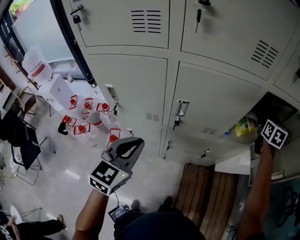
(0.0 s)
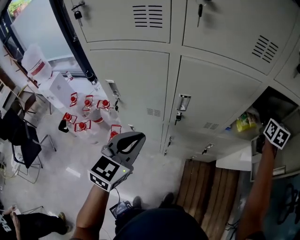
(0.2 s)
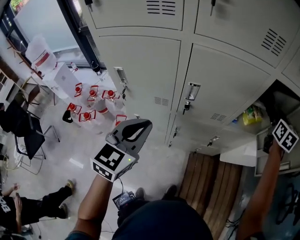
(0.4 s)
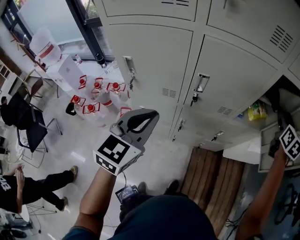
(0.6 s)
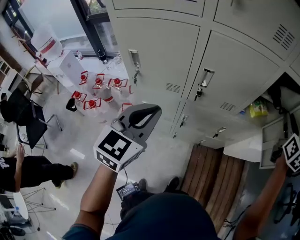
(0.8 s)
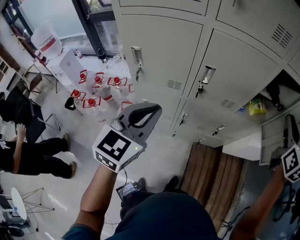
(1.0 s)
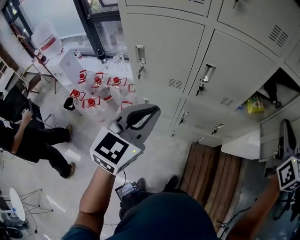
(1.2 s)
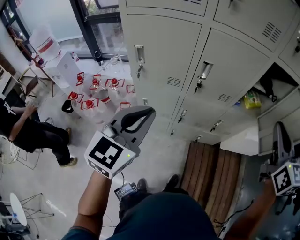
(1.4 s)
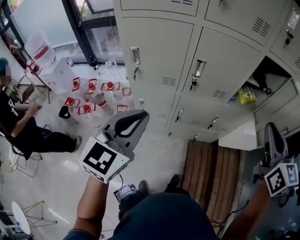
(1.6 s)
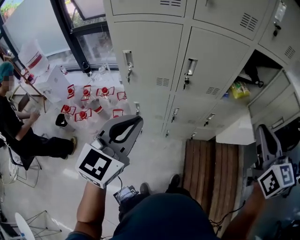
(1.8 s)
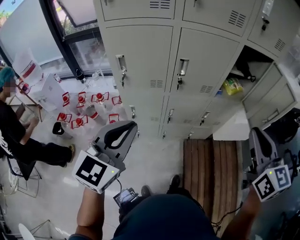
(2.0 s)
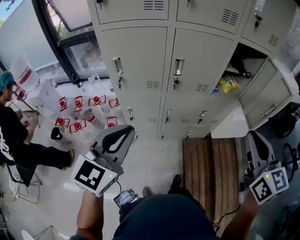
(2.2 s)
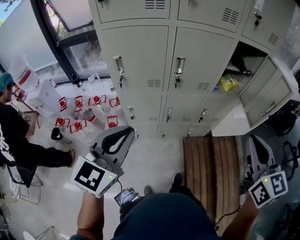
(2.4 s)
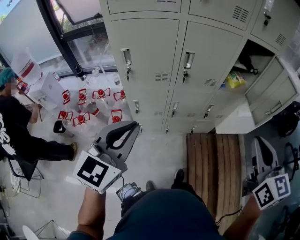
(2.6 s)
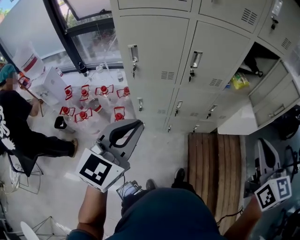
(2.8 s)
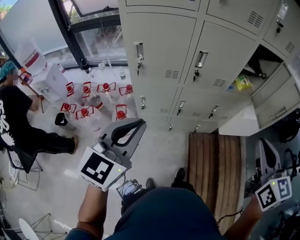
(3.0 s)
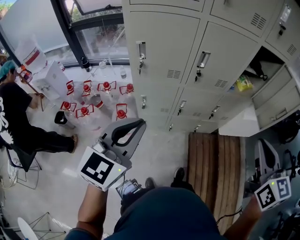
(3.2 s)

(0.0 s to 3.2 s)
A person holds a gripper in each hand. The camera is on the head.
0.0 s - 1.6 s: The right gripper heads backward, covering some 40 cm, swivels approximately 20 degrees, and closes. The left gripper shifts about 15 cm backward.
1.6 s - 3.2 s: The right gripper heads backward and to the left, covering roughly 15 cm. The left gripper moves backward and to the left, roughly 10 cm.

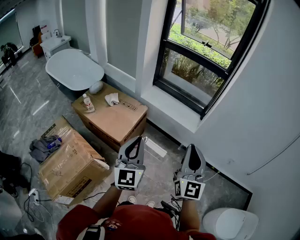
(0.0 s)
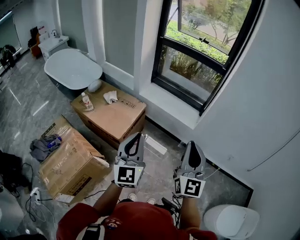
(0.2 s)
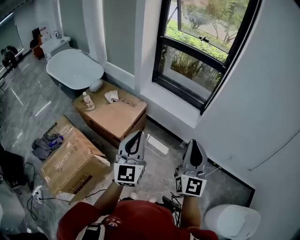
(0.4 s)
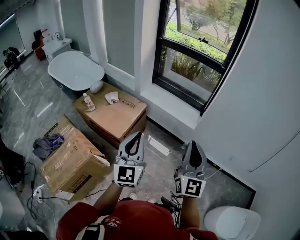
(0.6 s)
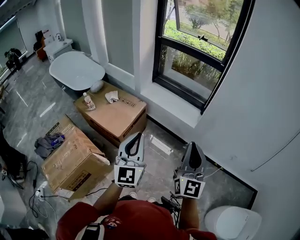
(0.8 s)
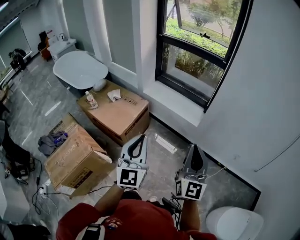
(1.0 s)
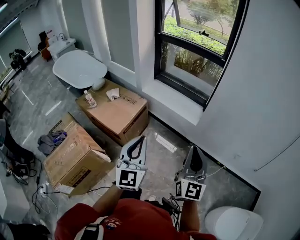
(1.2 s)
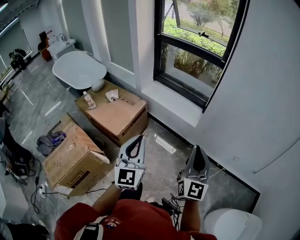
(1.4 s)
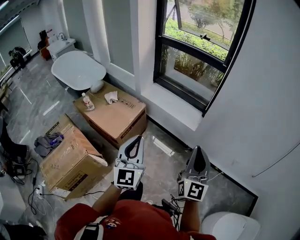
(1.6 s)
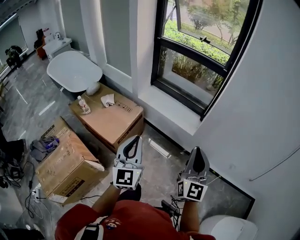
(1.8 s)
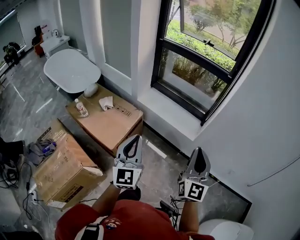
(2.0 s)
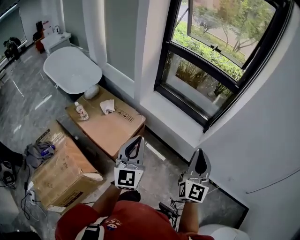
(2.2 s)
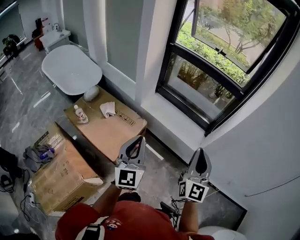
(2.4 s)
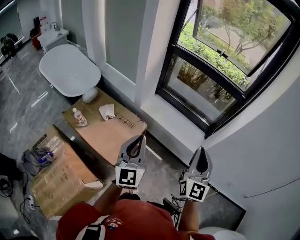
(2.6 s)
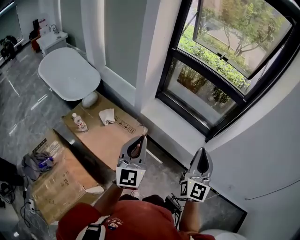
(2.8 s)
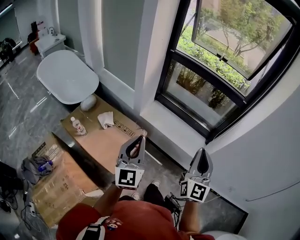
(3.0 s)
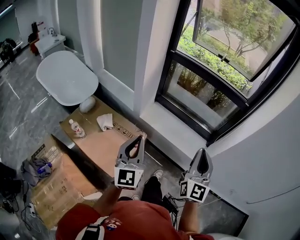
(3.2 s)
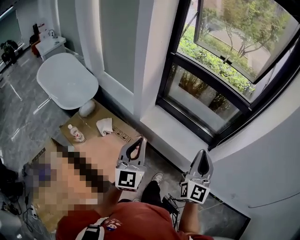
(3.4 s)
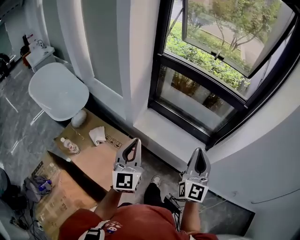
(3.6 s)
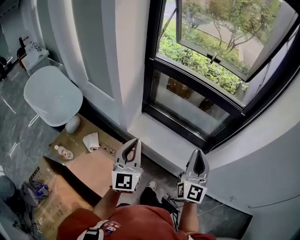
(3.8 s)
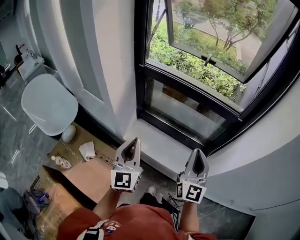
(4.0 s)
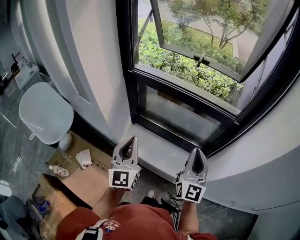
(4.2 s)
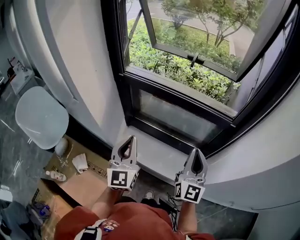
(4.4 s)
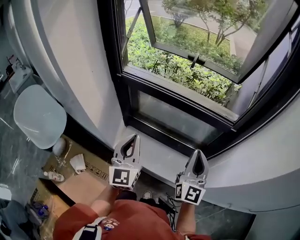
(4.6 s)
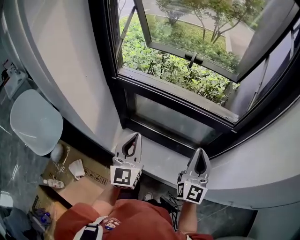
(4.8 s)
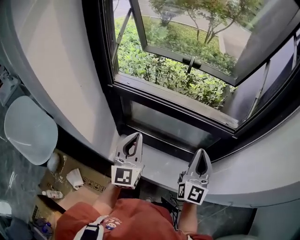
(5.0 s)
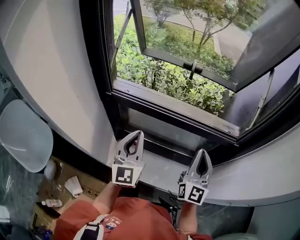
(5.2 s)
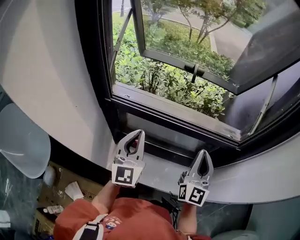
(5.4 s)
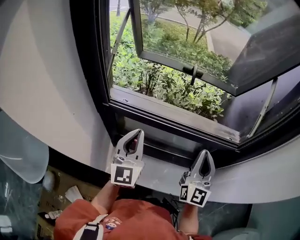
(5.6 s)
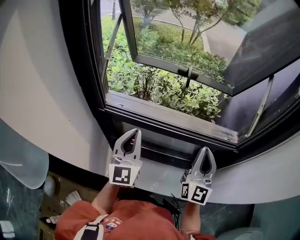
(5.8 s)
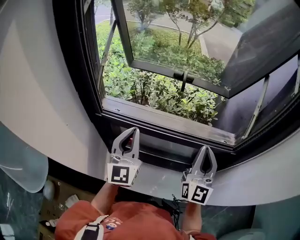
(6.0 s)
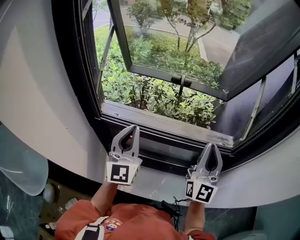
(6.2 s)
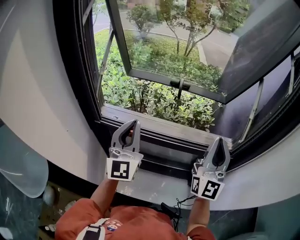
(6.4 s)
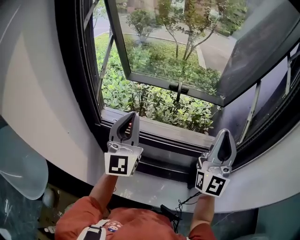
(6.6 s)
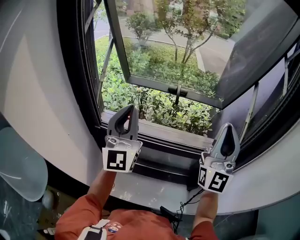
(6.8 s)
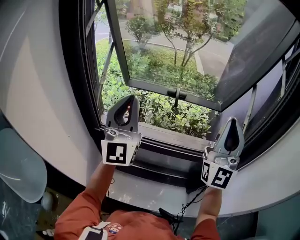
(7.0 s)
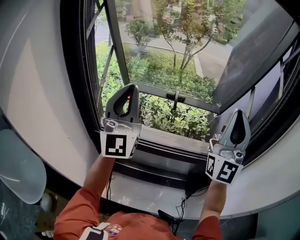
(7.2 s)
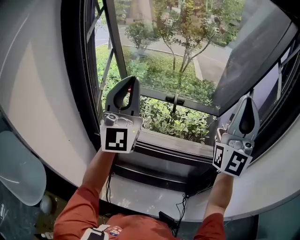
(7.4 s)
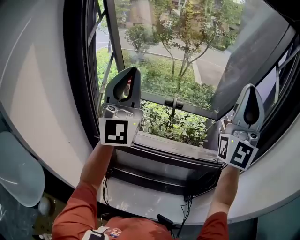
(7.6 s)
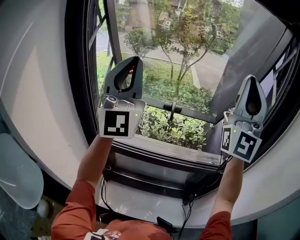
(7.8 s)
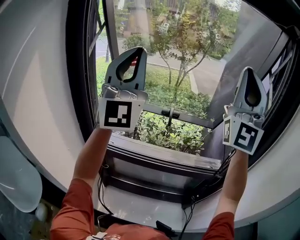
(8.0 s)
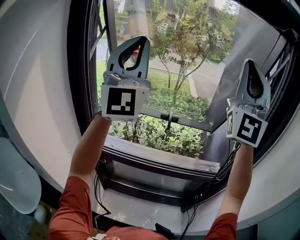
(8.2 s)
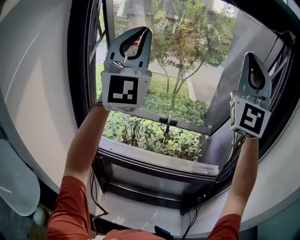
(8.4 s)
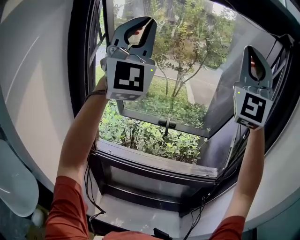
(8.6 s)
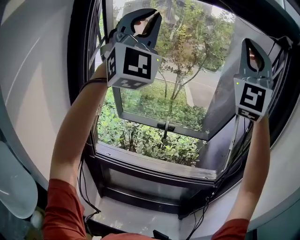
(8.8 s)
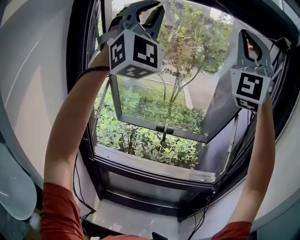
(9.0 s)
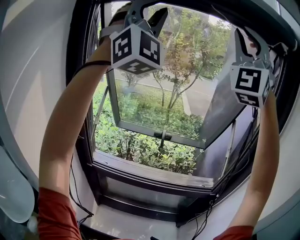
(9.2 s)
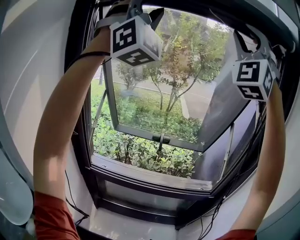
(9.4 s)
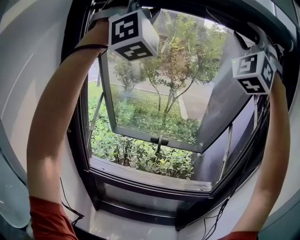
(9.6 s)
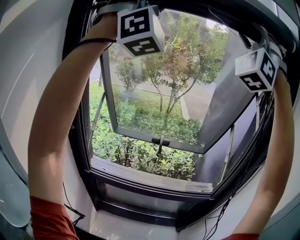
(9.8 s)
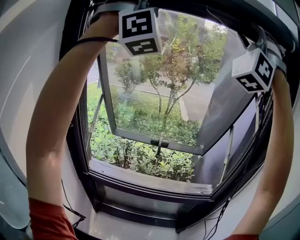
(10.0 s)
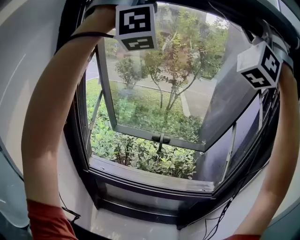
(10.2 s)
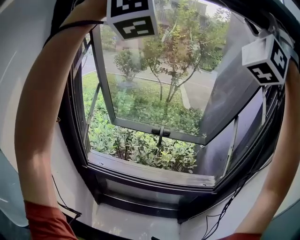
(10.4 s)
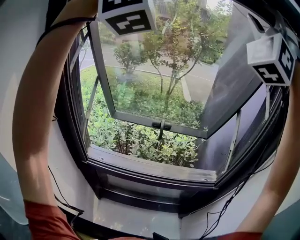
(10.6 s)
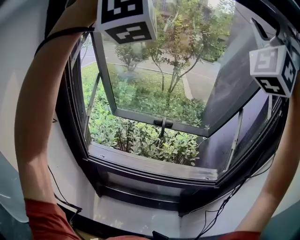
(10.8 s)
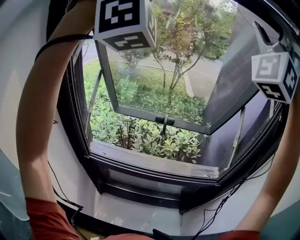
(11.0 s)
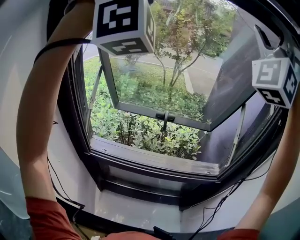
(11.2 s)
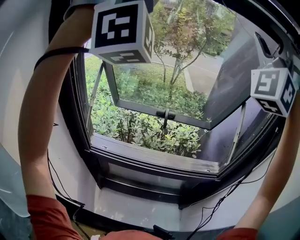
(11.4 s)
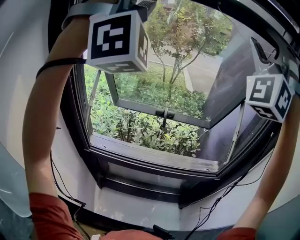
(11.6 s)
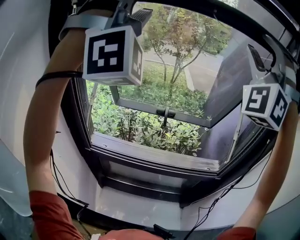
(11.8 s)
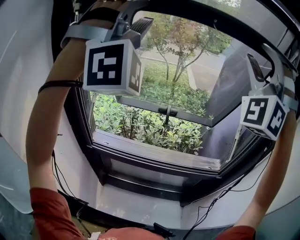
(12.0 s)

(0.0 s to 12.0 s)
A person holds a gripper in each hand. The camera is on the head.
0.0 s - 1.6 s: The grippers both shift to the right by approximately 10 cm.
1.6 s - 3.0 s: Both grippers move forward and to the left, approximately 30 cm.
3.0 s - 4.4 s: The left gripper is displaced forward by about 35 cm, while the right gripper is displaced forward and to the right by some 35 cm.
4.4 s - 6.0 s: The right gripper shifts about 20 cm forward and upward. Meanwhile the left gripper goes about 25 cm forward.
6.0 s - 7.6 s: The two grippers go roughly 30 cm upward. The right gripper tilts its fingers some 30 degrees upward, while the left gripper angles its fingers upward, by approximately 30 degrees.
7.6 s - 9.0 s: Both grippers travel together upward, some 25 cm. The right gripper rotates roughly 40 degrees. The left gripper rolls clockwise, seen from behind, by some 40 degrees.
9.0 s - 10.4 s: Both grippers travel together upward, about 5 cm. The right gripper changes its angle by approximately 40 degrees, and opens its fingers. The left gripper turns by some 40 degrees, and opens up.
10.4 s - 12.0 s: Both grippers travel together downward, roughly 15 cm.

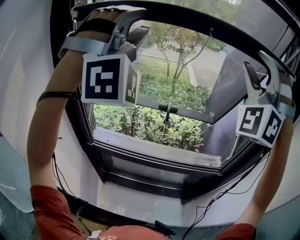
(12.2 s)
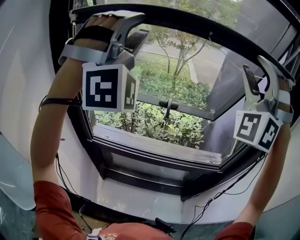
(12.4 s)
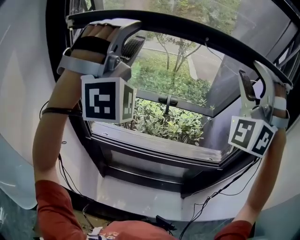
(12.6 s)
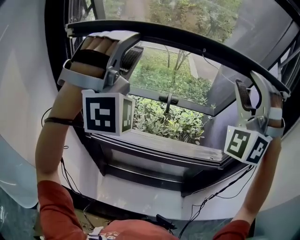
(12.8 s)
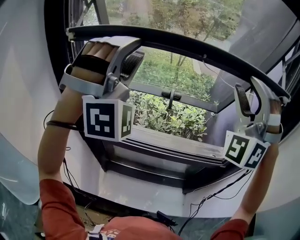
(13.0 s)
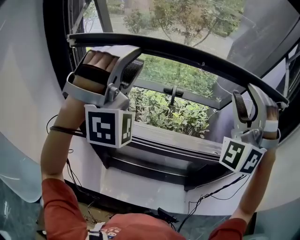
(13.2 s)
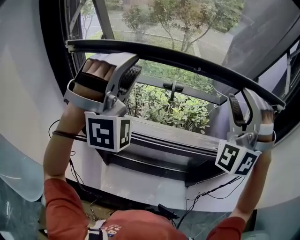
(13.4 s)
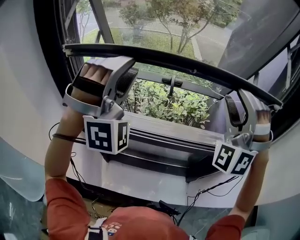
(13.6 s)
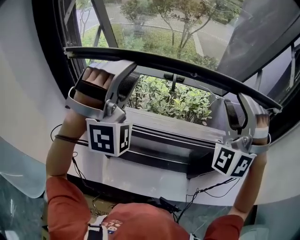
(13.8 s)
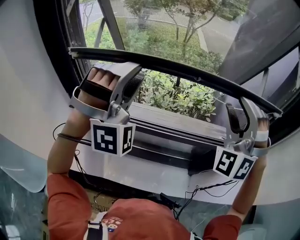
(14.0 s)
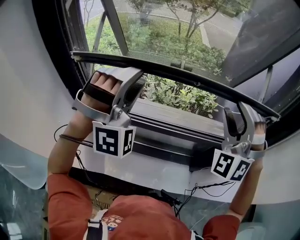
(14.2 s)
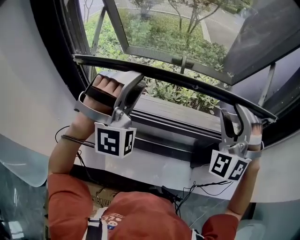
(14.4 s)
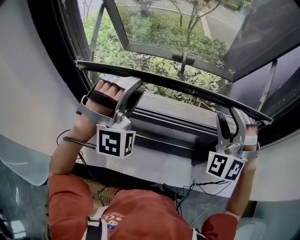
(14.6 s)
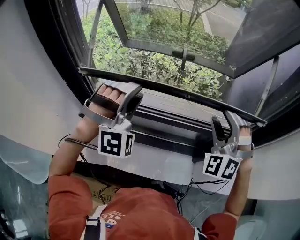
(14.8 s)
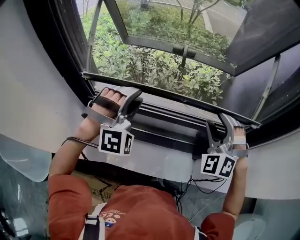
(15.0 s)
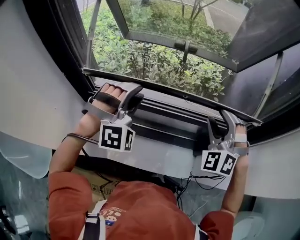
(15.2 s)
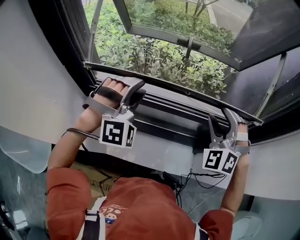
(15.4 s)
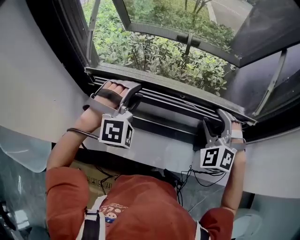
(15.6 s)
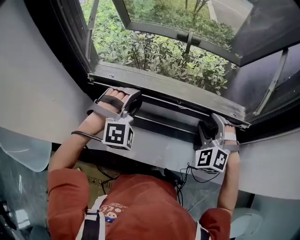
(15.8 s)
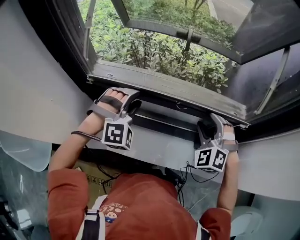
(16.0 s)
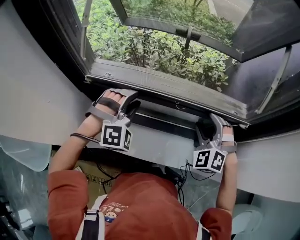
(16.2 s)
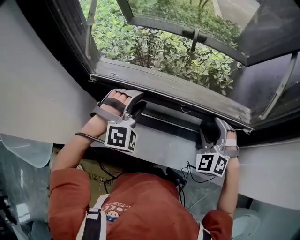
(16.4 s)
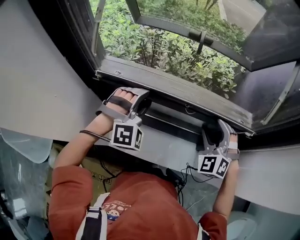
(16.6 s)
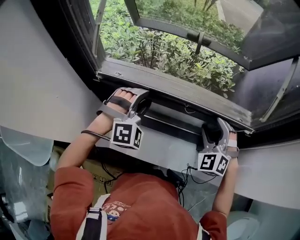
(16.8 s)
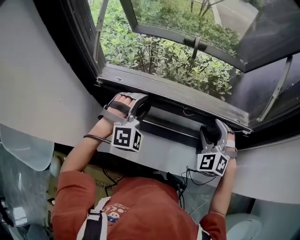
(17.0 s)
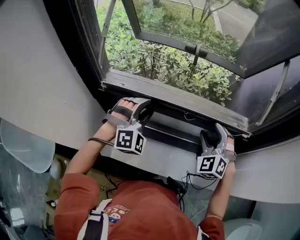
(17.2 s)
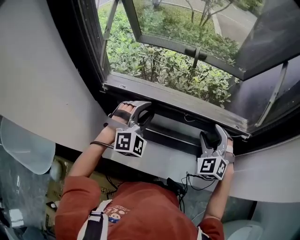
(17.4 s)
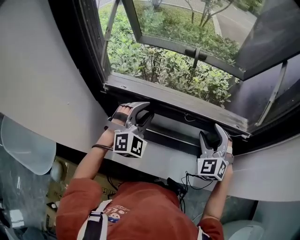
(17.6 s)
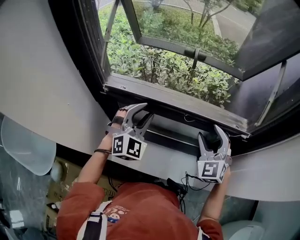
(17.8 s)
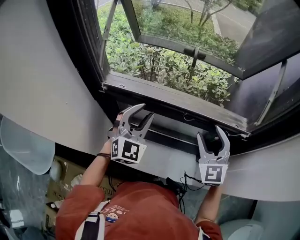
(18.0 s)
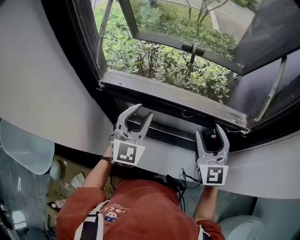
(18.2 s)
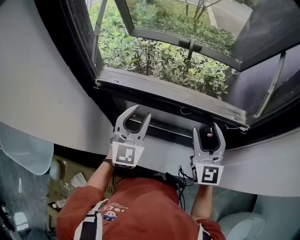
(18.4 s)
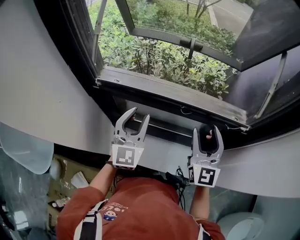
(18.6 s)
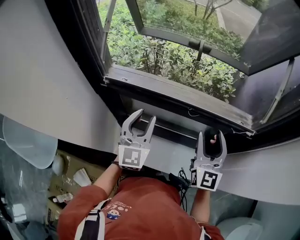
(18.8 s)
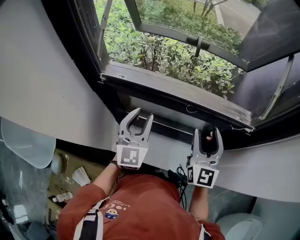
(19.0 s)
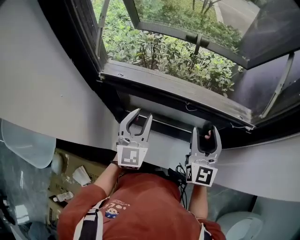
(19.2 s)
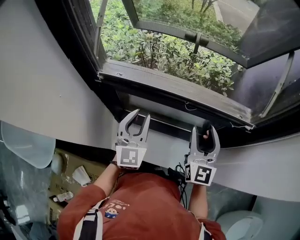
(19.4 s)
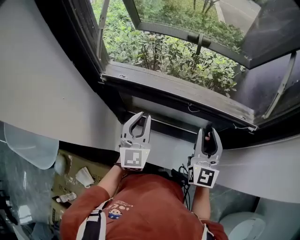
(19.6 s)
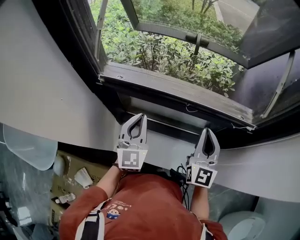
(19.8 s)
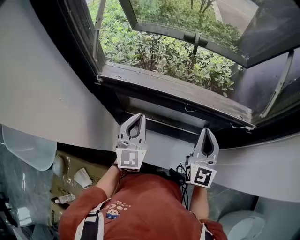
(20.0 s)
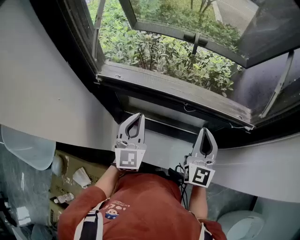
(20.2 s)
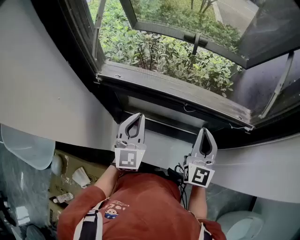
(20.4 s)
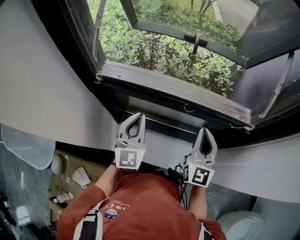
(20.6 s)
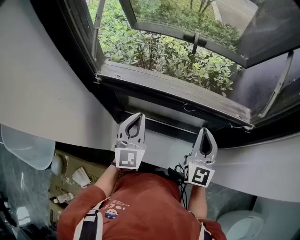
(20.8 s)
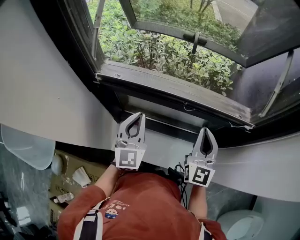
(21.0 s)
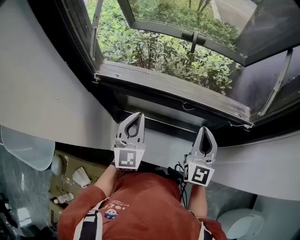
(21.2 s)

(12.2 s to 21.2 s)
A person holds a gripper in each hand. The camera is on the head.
12.2 s - 13.8 s: The two grippers go roughly 25 cm downward.
13.8 s - 15.2 s: The two grippers go about 15 cm downward. The left gripper rotates roughly 30 degrees, while the right gripper turns by about 30 degrees.
15.2 s - 16.6 s: The grippers both shift downward by approximately 10 cm.
16.6 s - 18.2 s: The right gripper heads upward, covering approximately 10 cm, and turns by approximately 50 degrees, while the left gripper shifts approximately 5 cm upward, and twists roughly 50 degrees counterclockwise, seen from behind.
18.2 s - 19.8 s: The left gripper travels downward by roughly 5 cm, and closes, while the right gripper closes up.
19.8 s - 21.2 s: Both grippers stay put.
